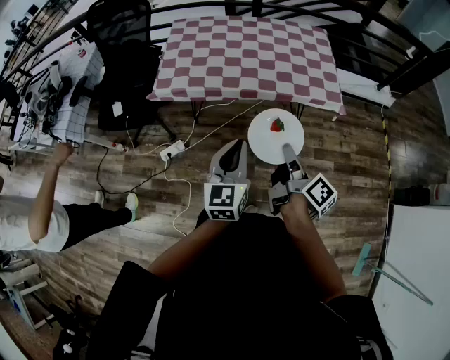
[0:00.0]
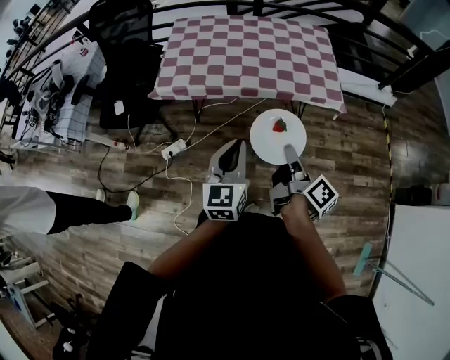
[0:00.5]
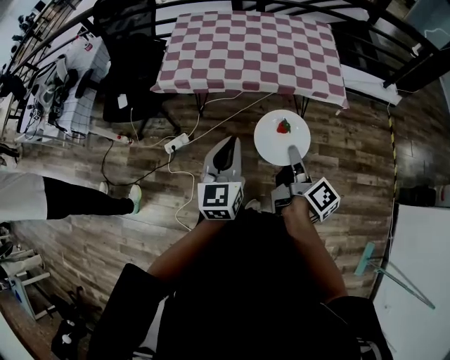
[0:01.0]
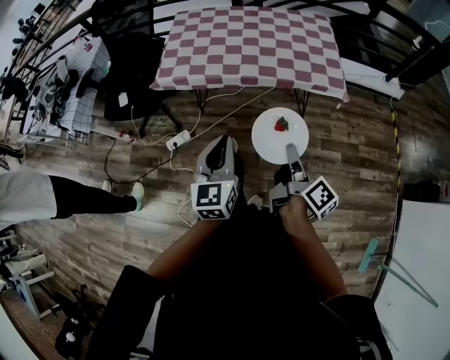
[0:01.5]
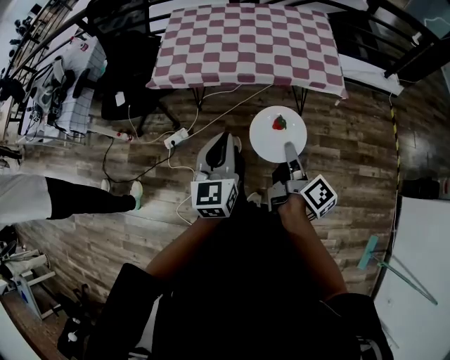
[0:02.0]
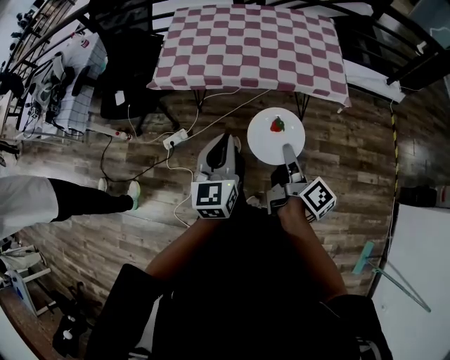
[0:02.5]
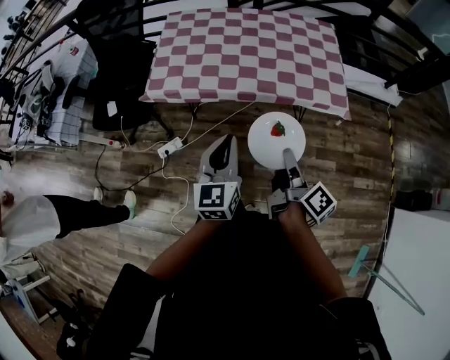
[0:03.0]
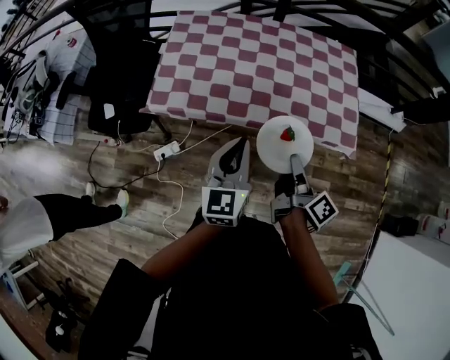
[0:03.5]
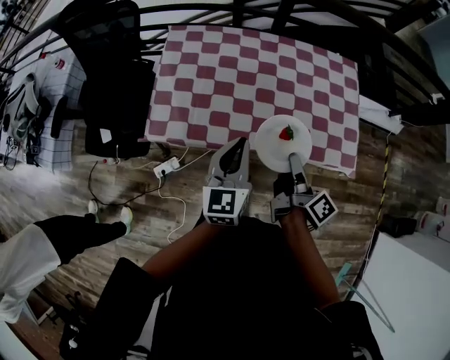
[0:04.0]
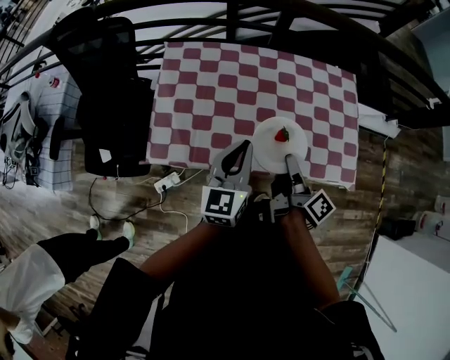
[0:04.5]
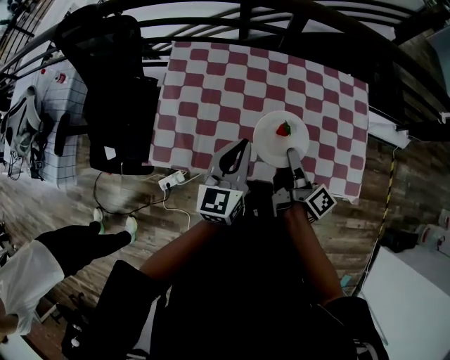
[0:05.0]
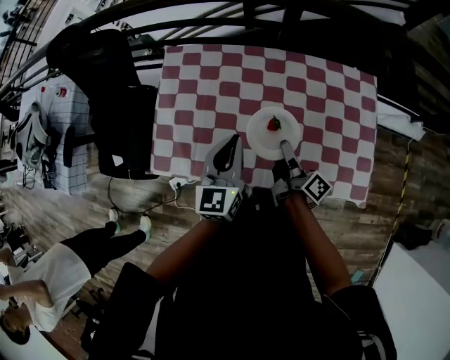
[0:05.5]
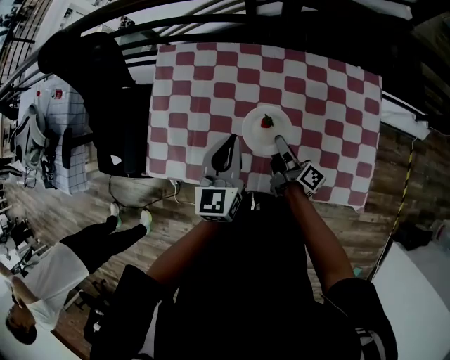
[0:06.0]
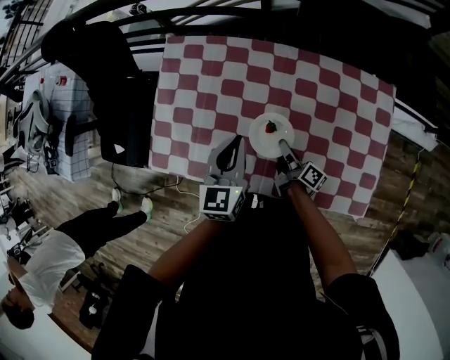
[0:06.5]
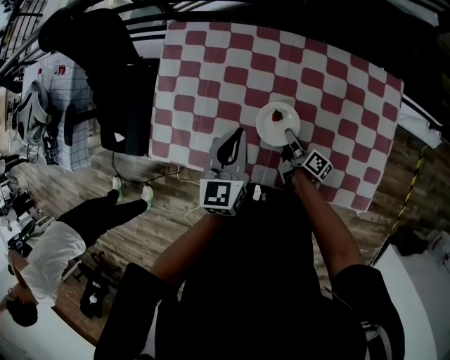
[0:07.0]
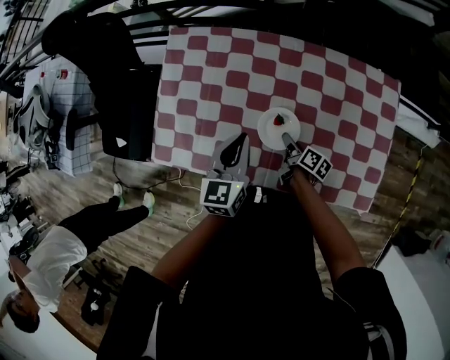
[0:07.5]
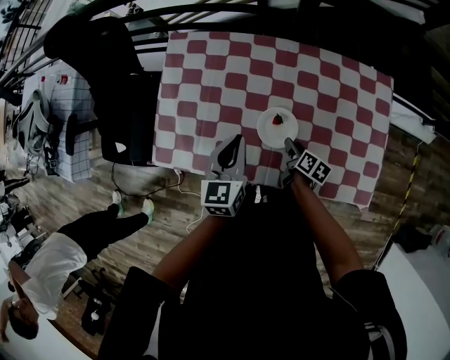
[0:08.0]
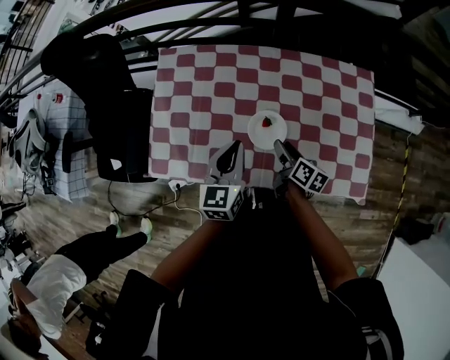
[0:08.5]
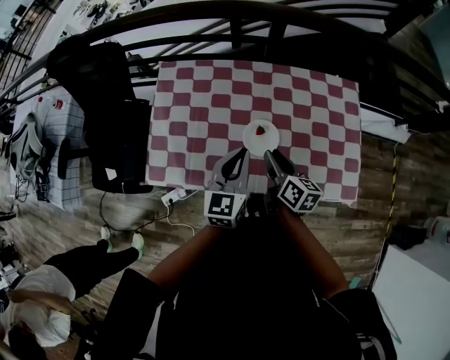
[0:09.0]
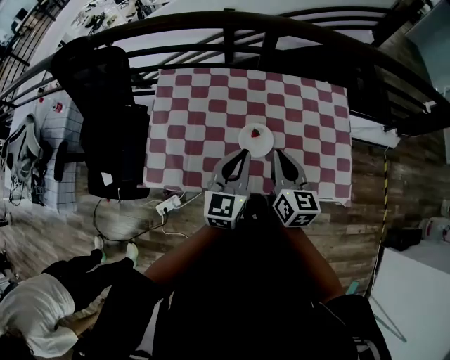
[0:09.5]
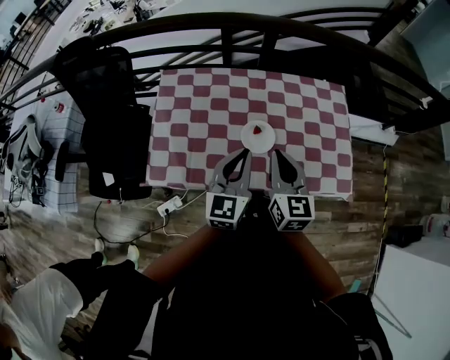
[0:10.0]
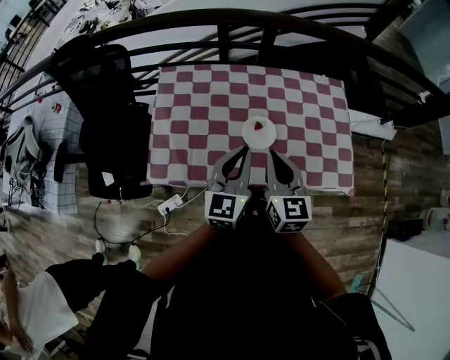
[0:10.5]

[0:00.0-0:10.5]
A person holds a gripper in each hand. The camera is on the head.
0:00.0 to 0:02.0: The right gripper ends up some 5 cm from where it was.
0:02.0 to 0:04.0: The grippers both shift forward by approximately 40 cm.
0:04.0 to 0:06.5: The left gripper goes approximately 20 cm forward, while the right gripper shifts some 35 cm forward and downward, and changes its angle by some 20 degrees.
0:06.5 to 0:08.5: The right gripper travels upward by approximately 5 cm, swivels about 30 degrees, and opens. Meanwhile the left gripper goes some 5 cm backward.
0:08.5 to 0:10.5: The right gripper moves upward and backward, about 25 cm, twists some 50 degrees counterclockwise, seen from behind, and closes its fingers. Meanwhile the left gripper heads upward and backward, covering about 15 cm.

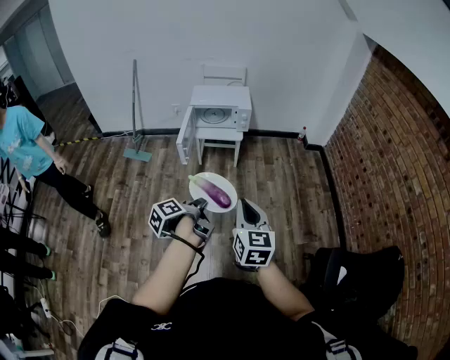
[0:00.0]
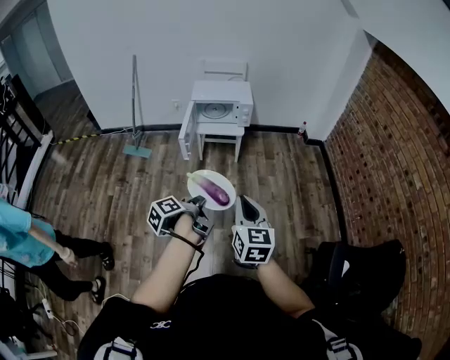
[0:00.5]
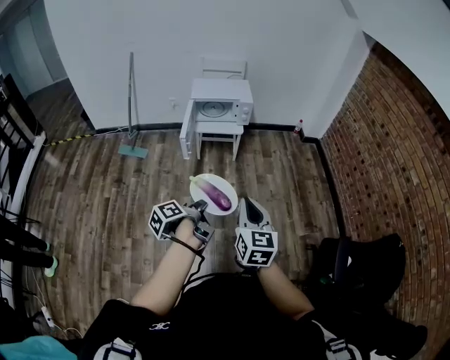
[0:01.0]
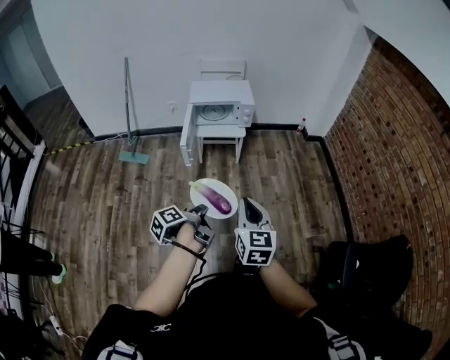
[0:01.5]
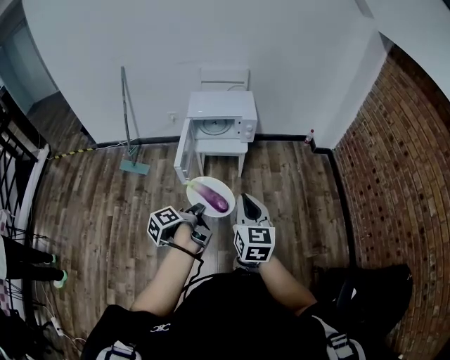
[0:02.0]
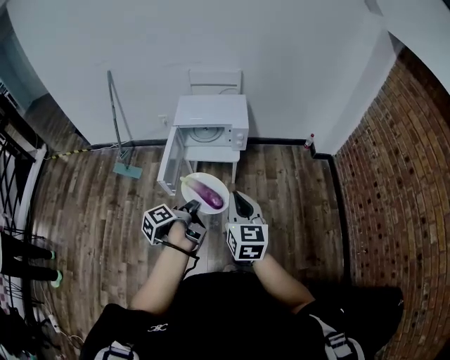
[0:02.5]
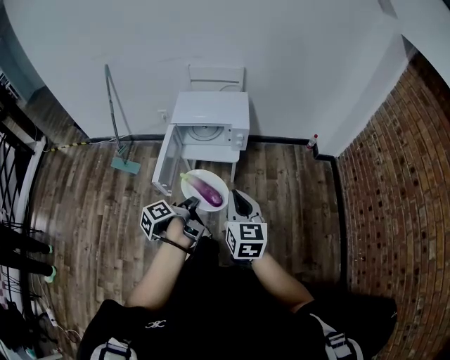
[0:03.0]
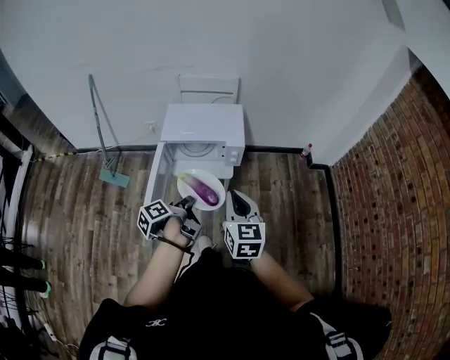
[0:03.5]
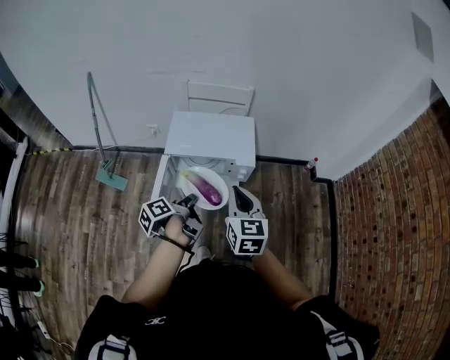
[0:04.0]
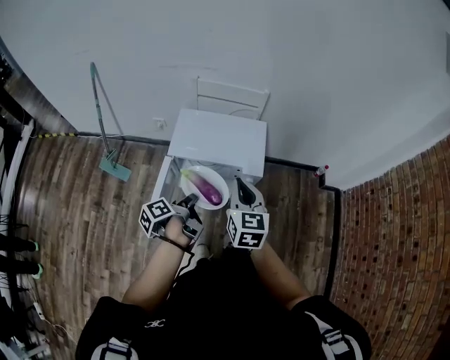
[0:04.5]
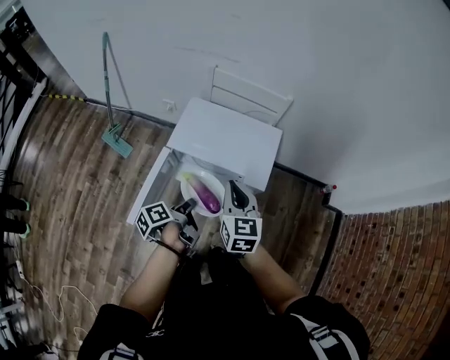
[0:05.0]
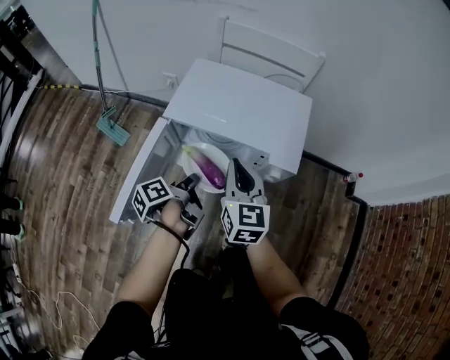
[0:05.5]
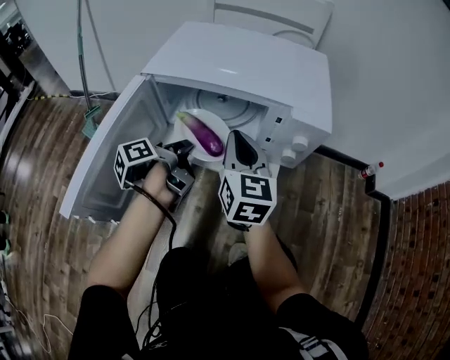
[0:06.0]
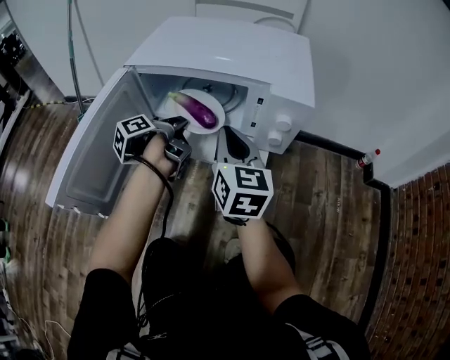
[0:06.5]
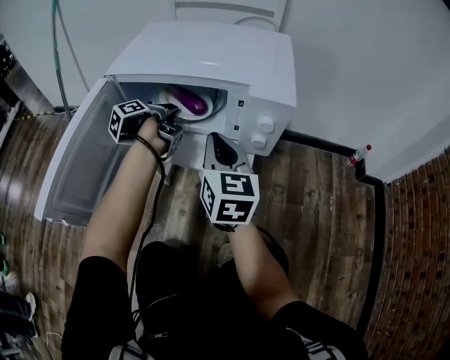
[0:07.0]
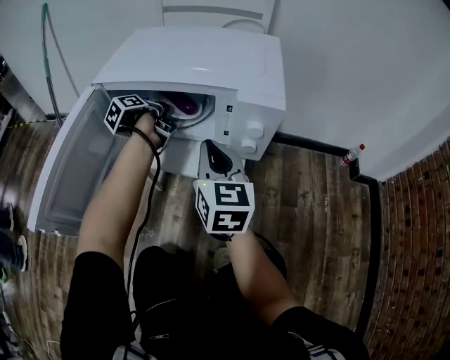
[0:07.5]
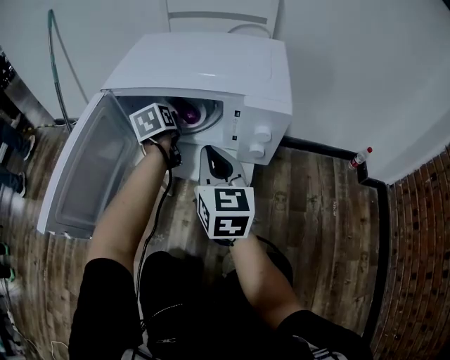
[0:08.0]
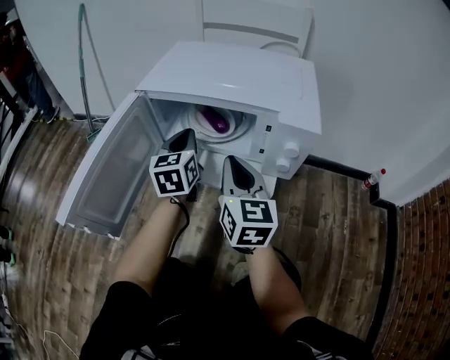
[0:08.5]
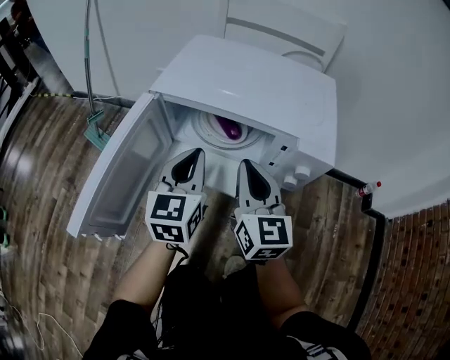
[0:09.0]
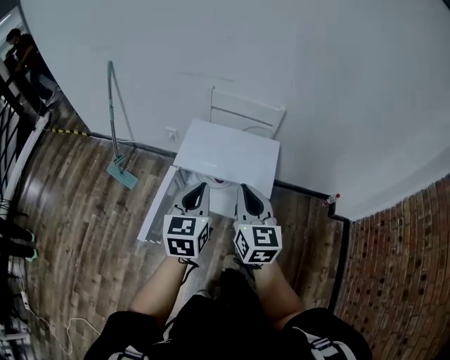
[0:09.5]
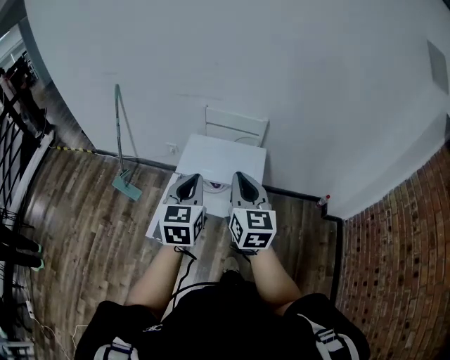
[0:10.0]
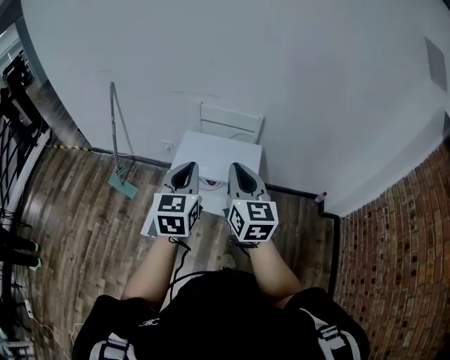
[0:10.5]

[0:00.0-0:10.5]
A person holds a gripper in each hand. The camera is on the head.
0:00.0 to 0:02.0: The right gripper shifts by about 20 cm.
0:02.0 to 0:04.0: The right gripper changes place by roughly 40 cm.
0:04.0 to 0:06.5: The right gripper heads downward, covering approximately 40 cm.
0:08.5 to 0:10.5: The right gripper travels upward by about 50 cm.

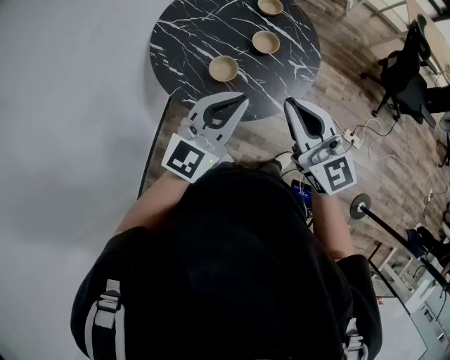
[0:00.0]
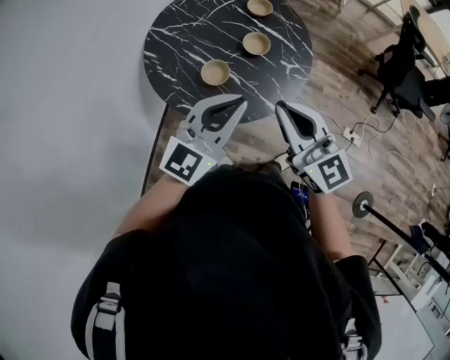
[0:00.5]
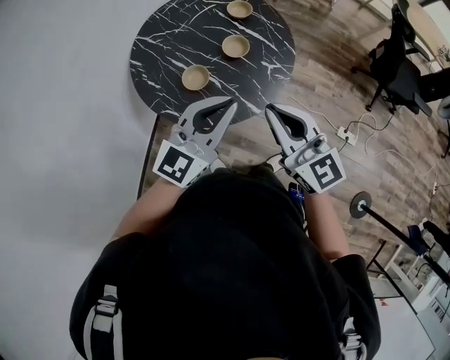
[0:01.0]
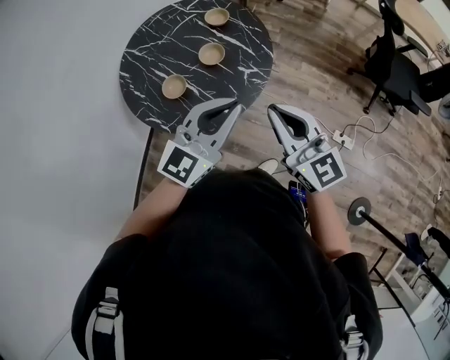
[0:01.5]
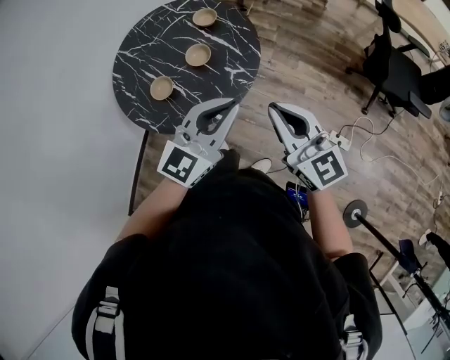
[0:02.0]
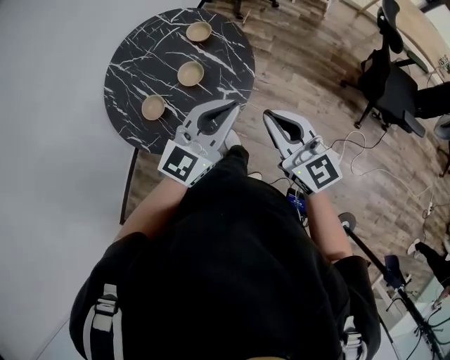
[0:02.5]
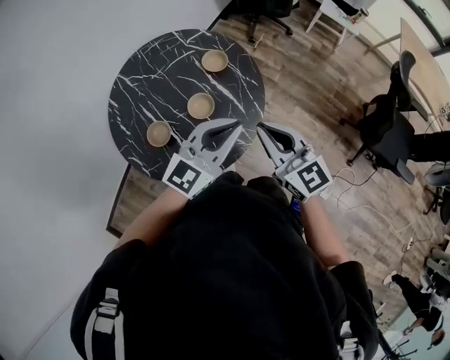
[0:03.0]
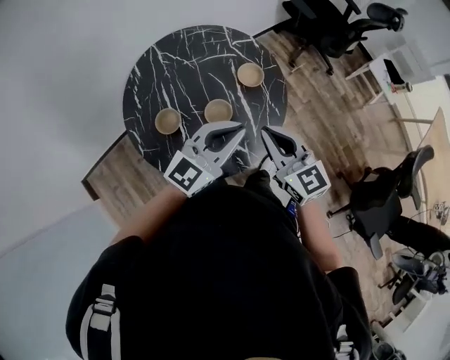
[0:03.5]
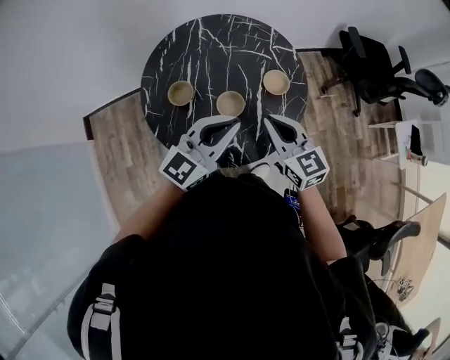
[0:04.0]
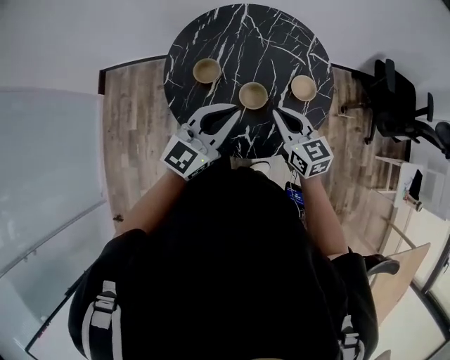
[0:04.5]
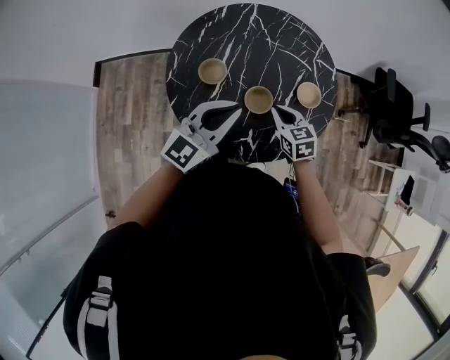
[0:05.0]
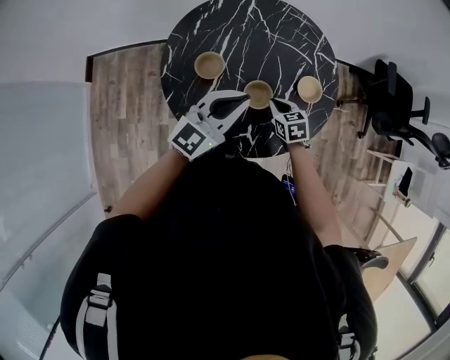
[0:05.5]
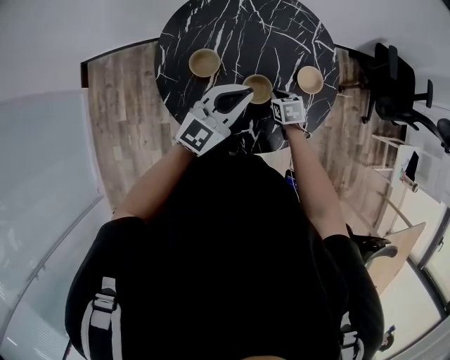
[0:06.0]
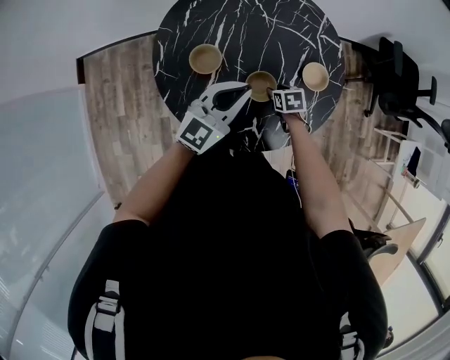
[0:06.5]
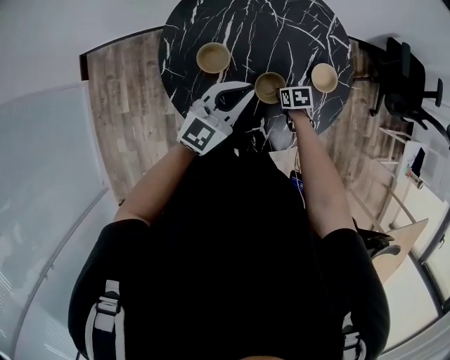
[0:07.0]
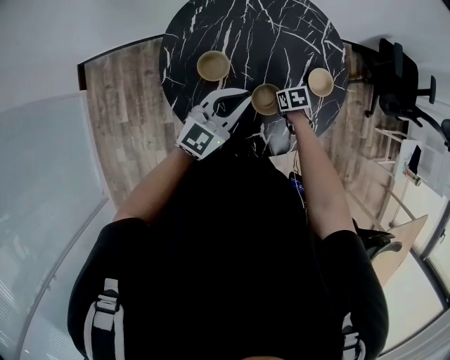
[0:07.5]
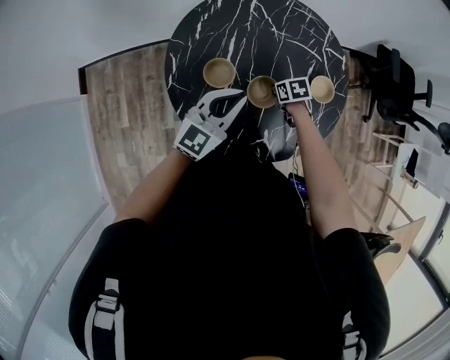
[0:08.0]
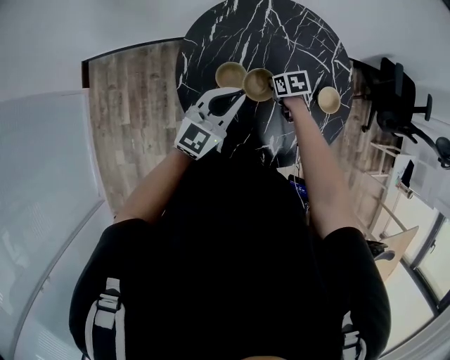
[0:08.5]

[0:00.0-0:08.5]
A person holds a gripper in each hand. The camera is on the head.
0:00.0 to 0:02.0: Both grippers move to the right, approximately 30 cm.
0:02.0 to 0:04.0: The left gripper changes place by some 30 cm, and turns by about 50 degrees. Meanwhile the right gripper changes place by roughly 40 cm, and changes its angle by roughly 50 degrees.
0:04.0 to 0:06.5: The right gripper is displaced downward by approximately 35 cm, points its fingers about 50 degrees further downward, and opens its fingers. Meanwhile the left gripper travels downward, forward and to the left by approximately 20 cm.
0:06.5 to 0:08.5: The right gripper shifts roughly 15 cm to the left, forward and upward, and closes its fingers. The left gripper is displaced to the left and forward by some 10 cm.
